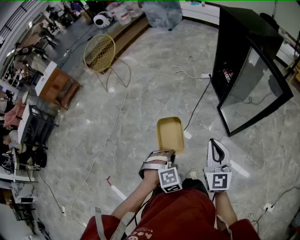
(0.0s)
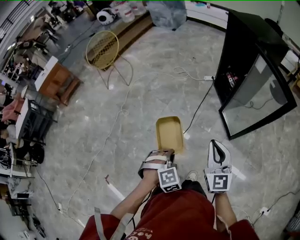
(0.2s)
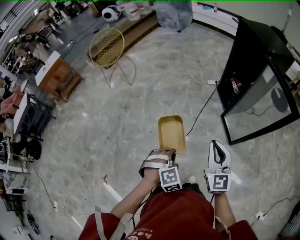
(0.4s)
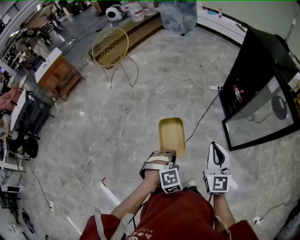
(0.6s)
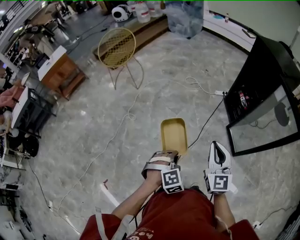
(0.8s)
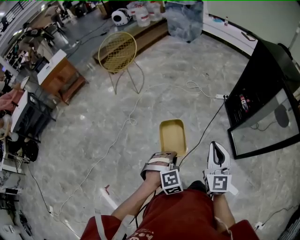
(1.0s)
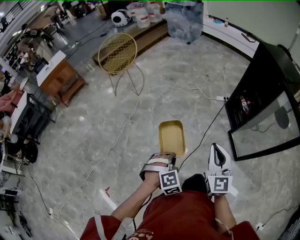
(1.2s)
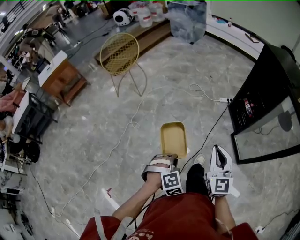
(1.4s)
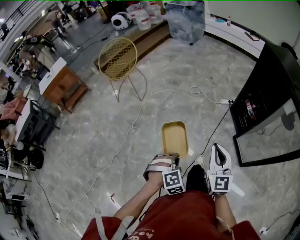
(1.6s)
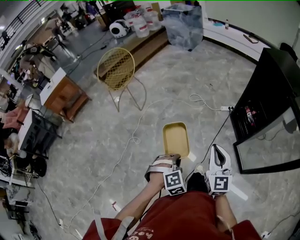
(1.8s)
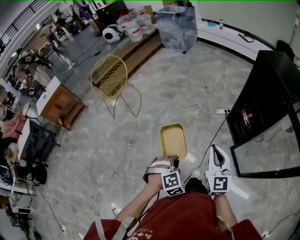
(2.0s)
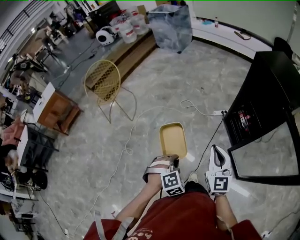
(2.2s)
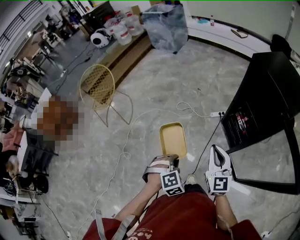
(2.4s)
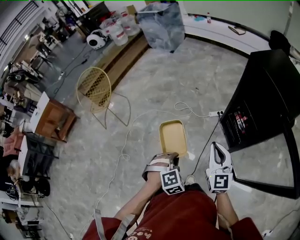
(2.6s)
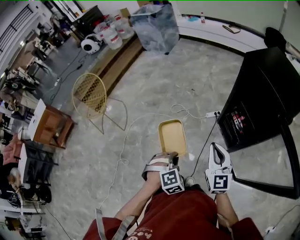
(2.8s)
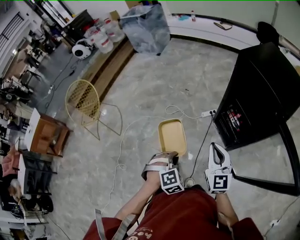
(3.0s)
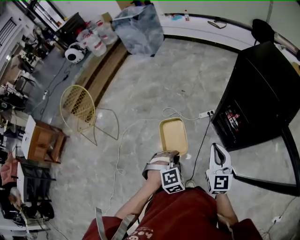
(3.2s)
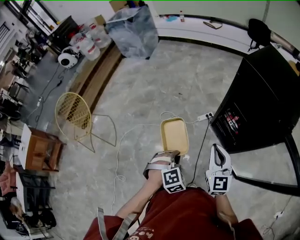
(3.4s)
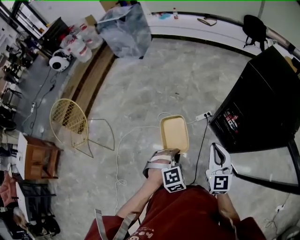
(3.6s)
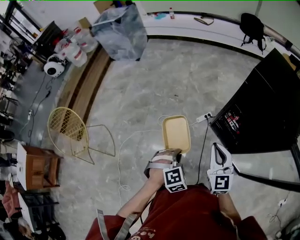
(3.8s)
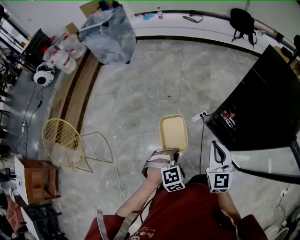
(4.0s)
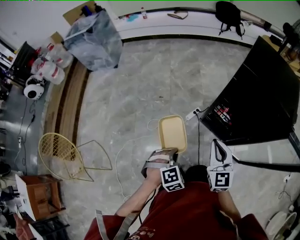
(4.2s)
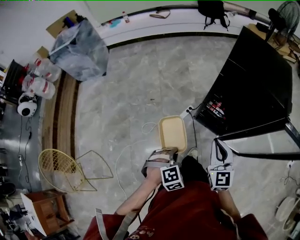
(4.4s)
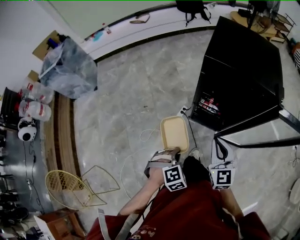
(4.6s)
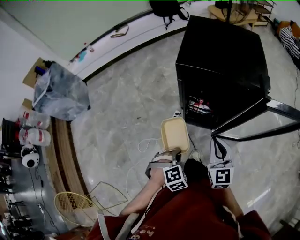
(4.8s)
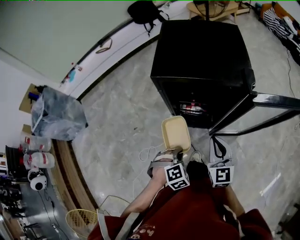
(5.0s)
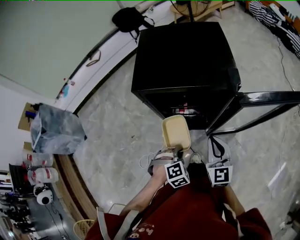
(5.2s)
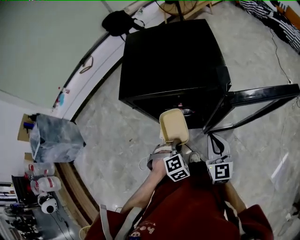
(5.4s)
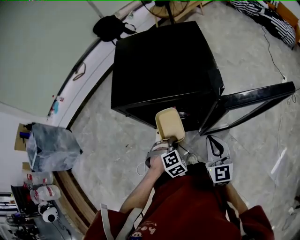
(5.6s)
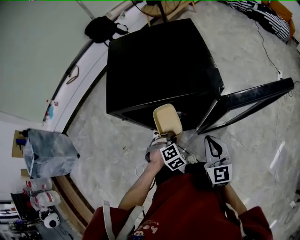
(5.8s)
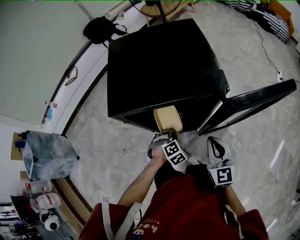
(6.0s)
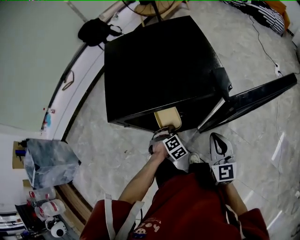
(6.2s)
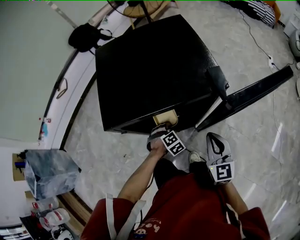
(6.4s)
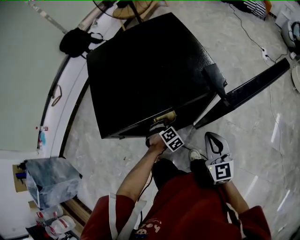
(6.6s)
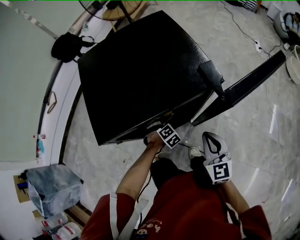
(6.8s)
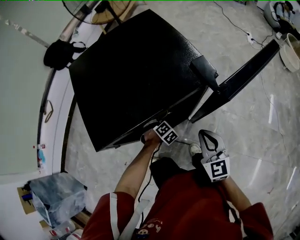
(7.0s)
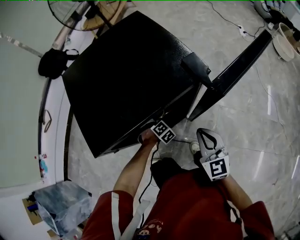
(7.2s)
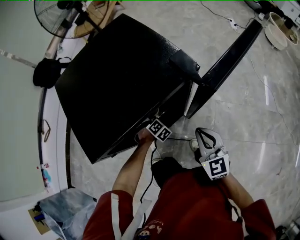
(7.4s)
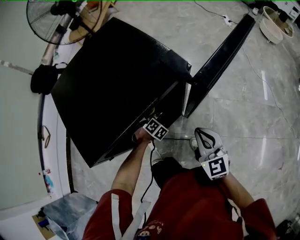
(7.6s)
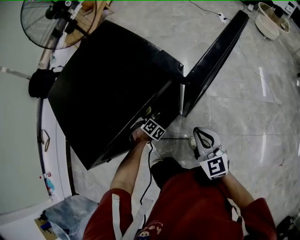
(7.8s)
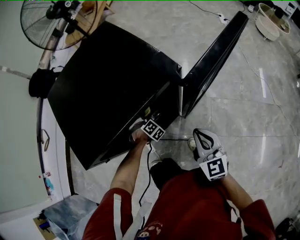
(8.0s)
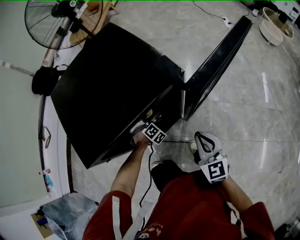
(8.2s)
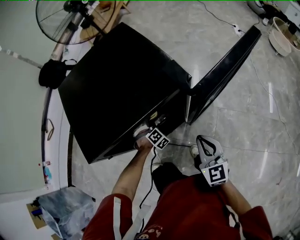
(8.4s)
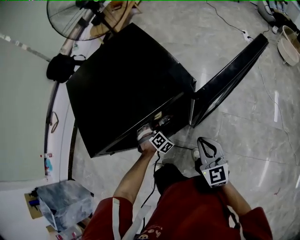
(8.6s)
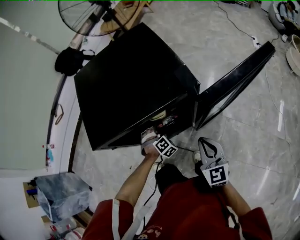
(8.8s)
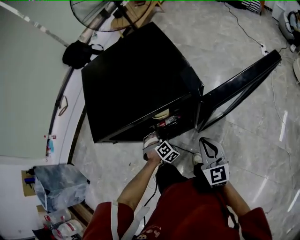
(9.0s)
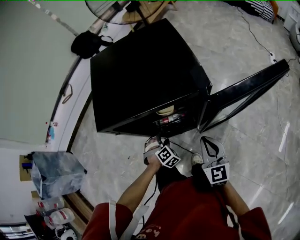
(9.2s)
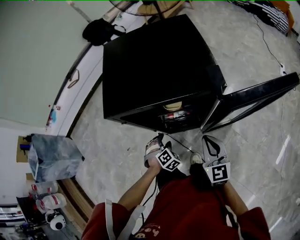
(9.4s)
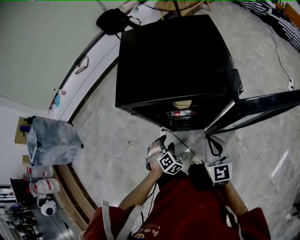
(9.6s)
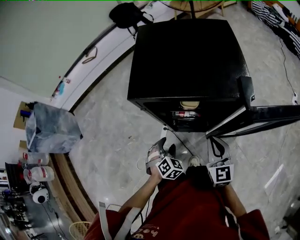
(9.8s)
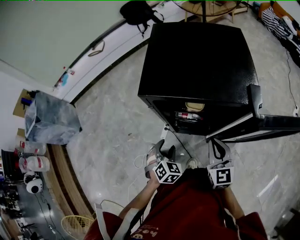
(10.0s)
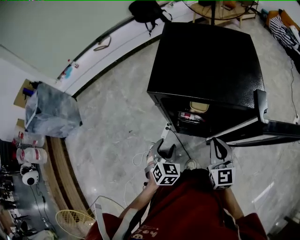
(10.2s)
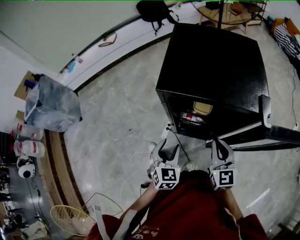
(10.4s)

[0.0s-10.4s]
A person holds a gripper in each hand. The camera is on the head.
0.0s to 1.4s: Both grippers travel together to the left and forward, roughly 25 cm.
1.4s to 3.0s: The pair of grippers is taken forward and to the right, about 40 cm.
3.0s to 4.4s: The left gripper shifts by some 25 cm, and turns by approximately 30 degrees. The right gripper moves about 20 cm, and swivels some 30 degrees.
4.4s to 6.0s: The right gripper ends up approximately 25 cm from where it was, and turns by approximately 40 degrees, while the left gripper ends up about 40 cm from where it was, and changes its angle by roughly 30 degrees.
6.0s to 7.4s: The left gripper is displaced forward and downward by roughly 15 cm.
7.4s to 9.0s: The left gripper goes about 10 cm backward and upward, and opens up.
9.0s to 10.4s: The left gripper travels upward, to the left and backward by approximately 25 cm, and rolls counterclockwise, seen from behind, by about 60 degrees. Meanwhile the right gripper travels to the left and forward by some 10 cm, and swivels roughly 20 degrees.

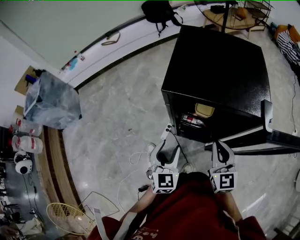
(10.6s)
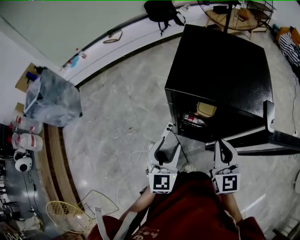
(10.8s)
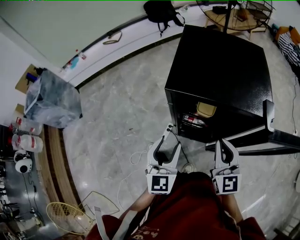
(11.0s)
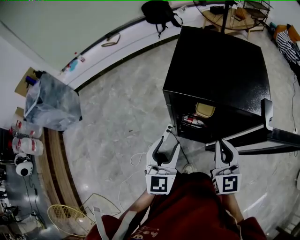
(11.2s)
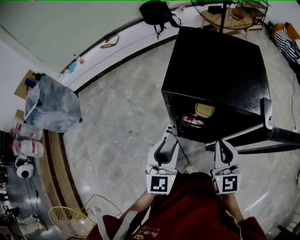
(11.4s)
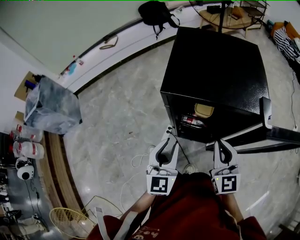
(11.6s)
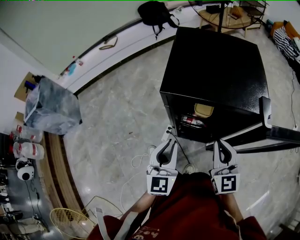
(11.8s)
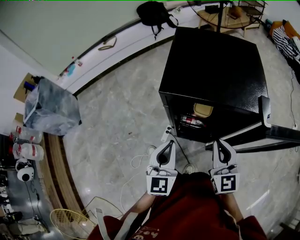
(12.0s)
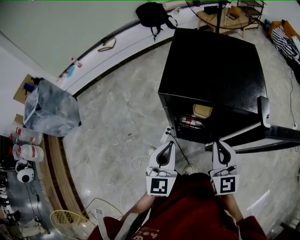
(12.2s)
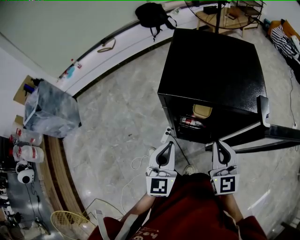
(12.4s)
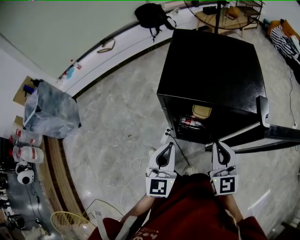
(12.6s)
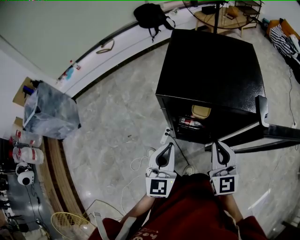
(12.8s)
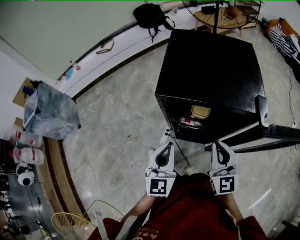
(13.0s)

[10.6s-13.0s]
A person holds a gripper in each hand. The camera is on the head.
10.6s to 11.8s: The left gripper heads upward, covering roughly 10 cm, and closes its fingers.
11.8s to 13.0s: The two grippers keep their place.

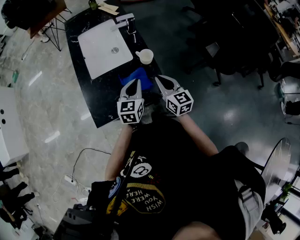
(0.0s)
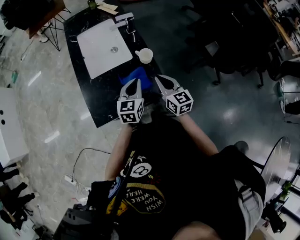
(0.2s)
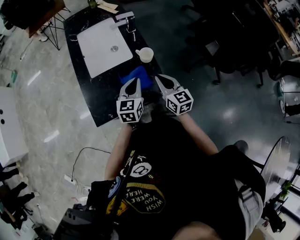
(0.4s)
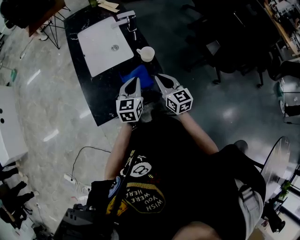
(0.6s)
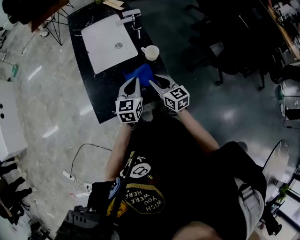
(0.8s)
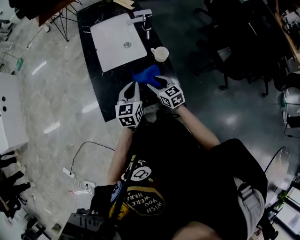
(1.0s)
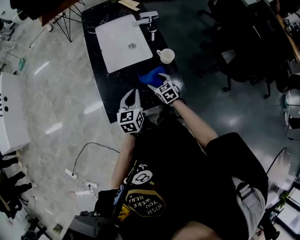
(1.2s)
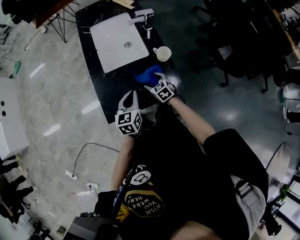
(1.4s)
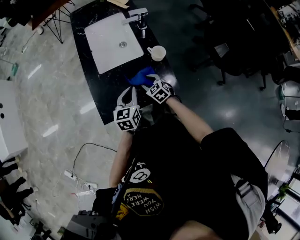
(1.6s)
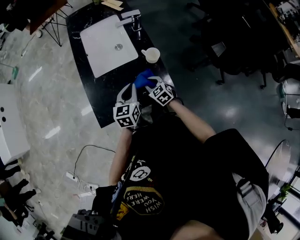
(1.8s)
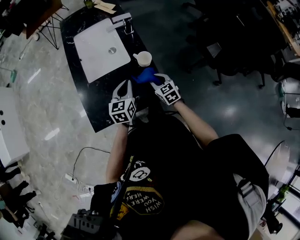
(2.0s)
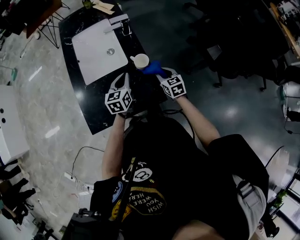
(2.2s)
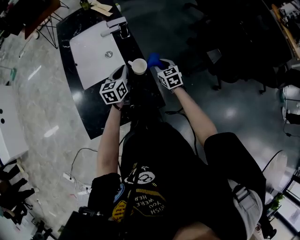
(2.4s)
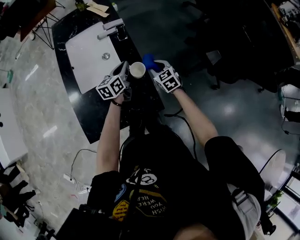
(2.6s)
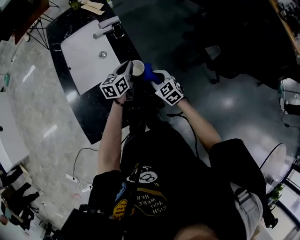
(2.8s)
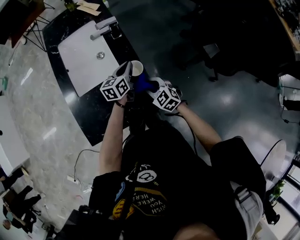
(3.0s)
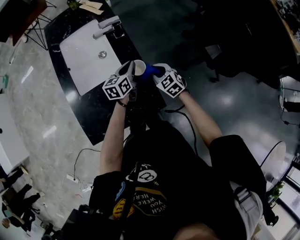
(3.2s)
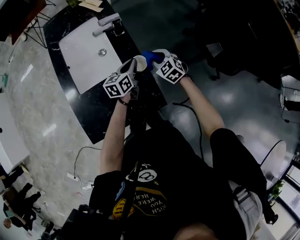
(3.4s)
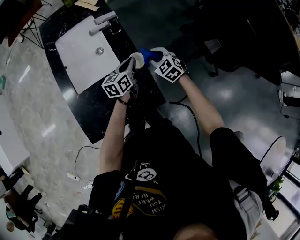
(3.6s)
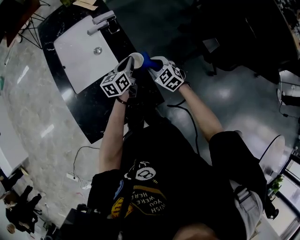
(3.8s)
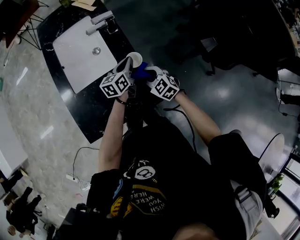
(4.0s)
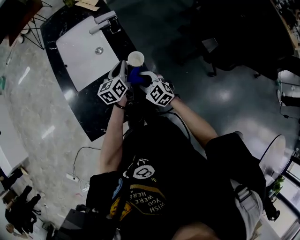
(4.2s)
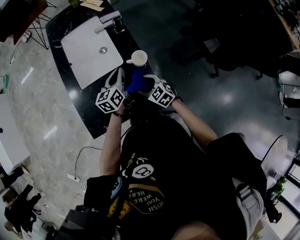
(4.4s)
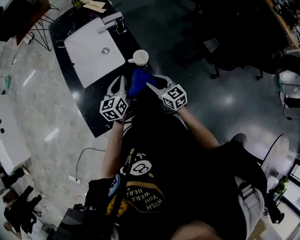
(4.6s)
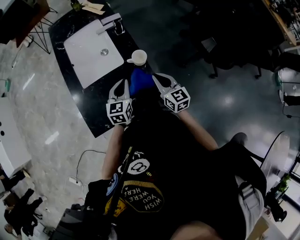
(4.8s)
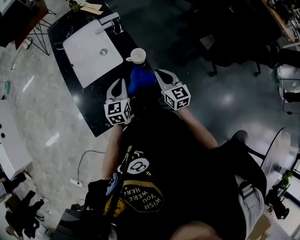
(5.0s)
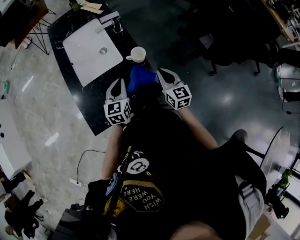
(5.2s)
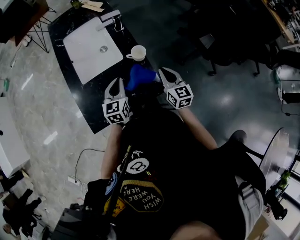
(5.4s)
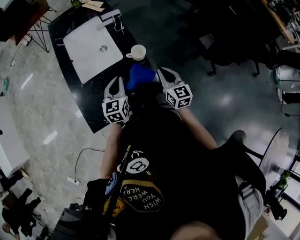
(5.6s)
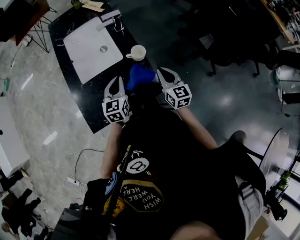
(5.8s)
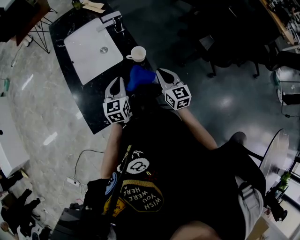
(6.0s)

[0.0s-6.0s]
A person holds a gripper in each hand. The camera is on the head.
0.0s to 1.6s: The left gripper goes roughly 10 cm to the left; the right gripper shifts some 20 cm downward and to the left, tilts its fingers about 30 degrees downward, and opens up.
1.6s to 3.0s: The left gripper shifts about 25 cm forward and to the right; the right gripper shifts some 15 cm to the right.
3.0s to 4.4s: The left gripper heads to the left and backward, covering about 10 cm; the right gripper reaches roughly 10 cm forward, then returns, and opens.
4.4s to 6.0s: The right gripper is displaced upward and to the right by about 15 cm, rotates about 40 degrees, and closes up, while the left gripper heads backward, covering approximately 10 cm, and turns by about 20 degrees.

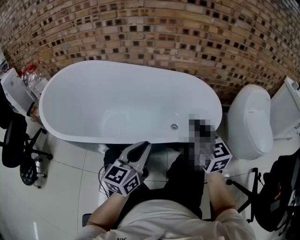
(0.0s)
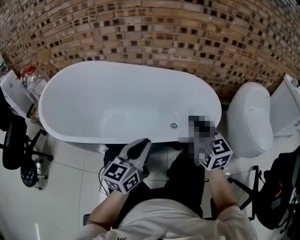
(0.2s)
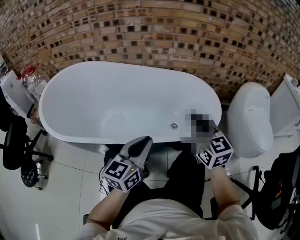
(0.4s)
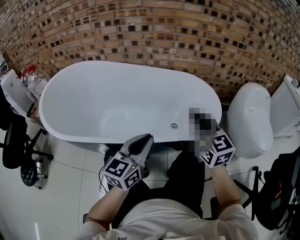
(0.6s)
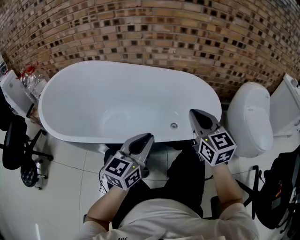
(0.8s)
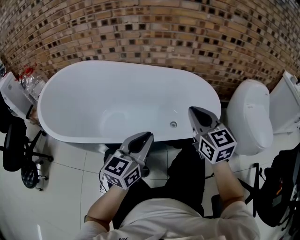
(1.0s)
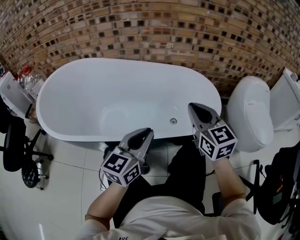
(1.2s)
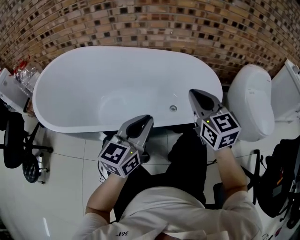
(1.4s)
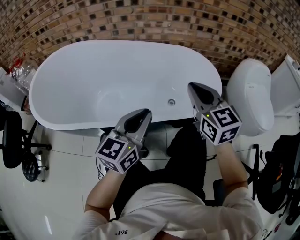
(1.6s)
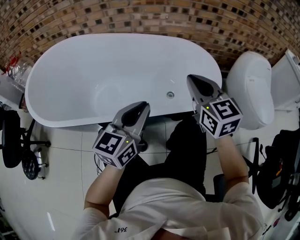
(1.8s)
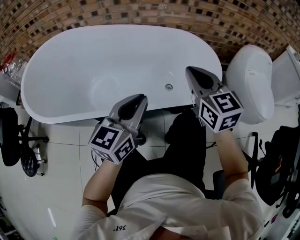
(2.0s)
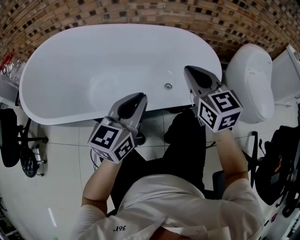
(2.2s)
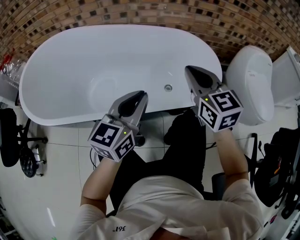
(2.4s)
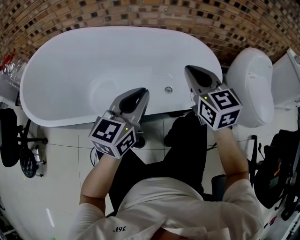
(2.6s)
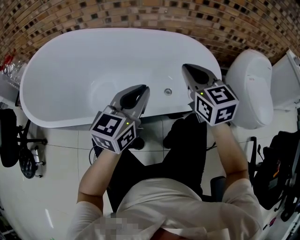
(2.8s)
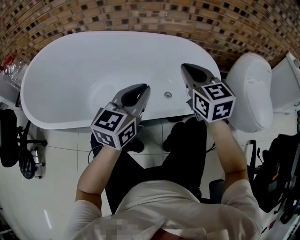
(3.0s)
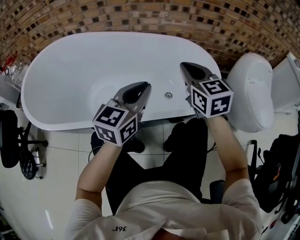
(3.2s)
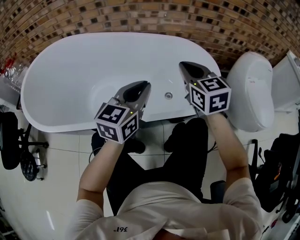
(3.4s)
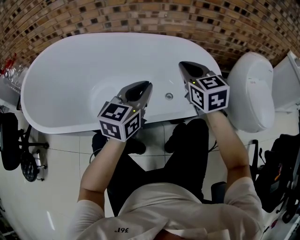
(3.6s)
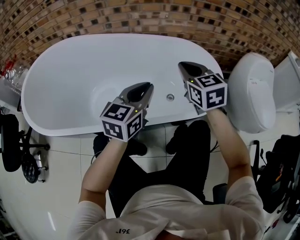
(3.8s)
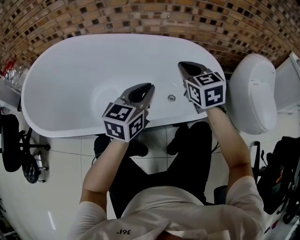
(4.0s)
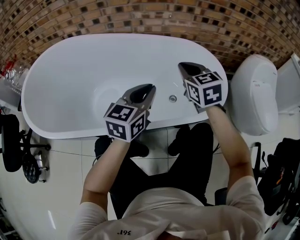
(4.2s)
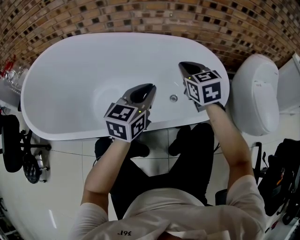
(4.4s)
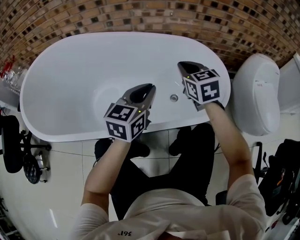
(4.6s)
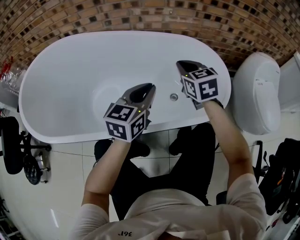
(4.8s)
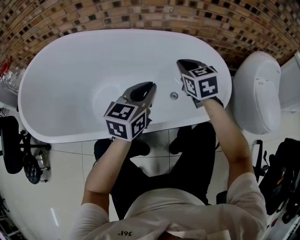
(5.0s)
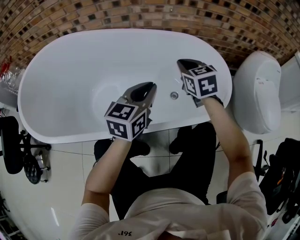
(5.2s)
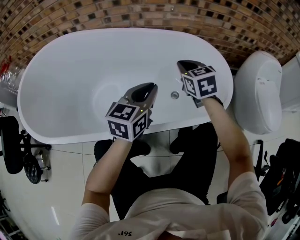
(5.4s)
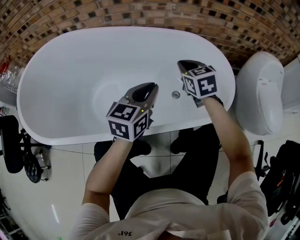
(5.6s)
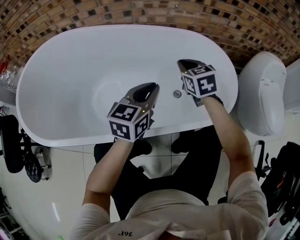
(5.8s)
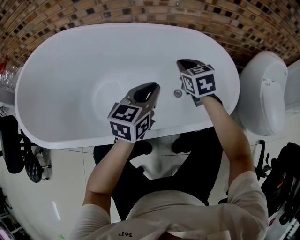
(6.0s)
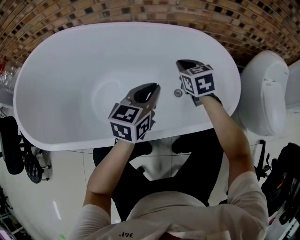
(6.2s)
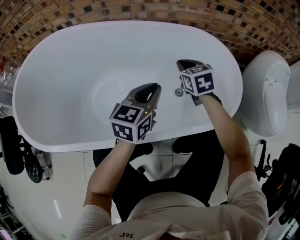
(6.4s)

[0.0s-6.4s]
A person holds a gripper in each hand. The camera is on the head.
0.0s to 1.6s: There are only small adjustments of the grippers.
1.6s to 3.2s: Both grippers move forward, approximately 10 cm.
3.2s to 4.8s: The two grippers go about 10 cm forward and downward.
4.8s to 6.4s: The right gripper moves downward and forward, about 10 cm; the left gripper heads downward, covering roughly 5 cm.
